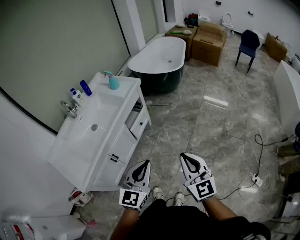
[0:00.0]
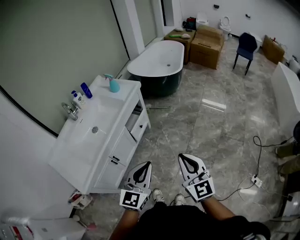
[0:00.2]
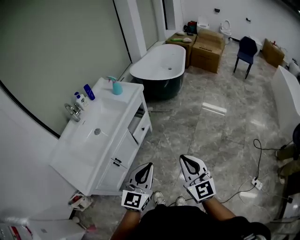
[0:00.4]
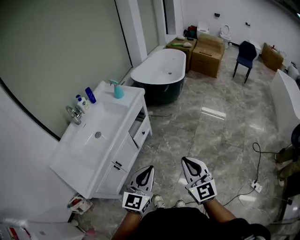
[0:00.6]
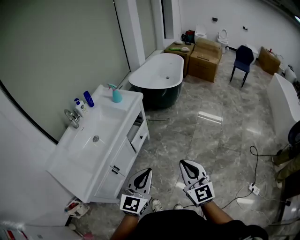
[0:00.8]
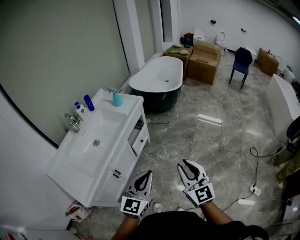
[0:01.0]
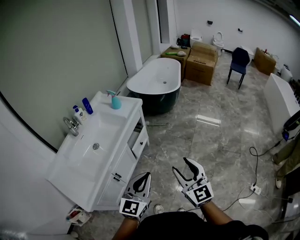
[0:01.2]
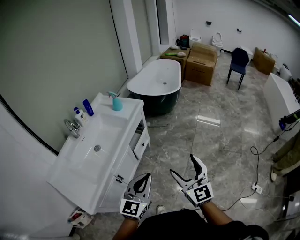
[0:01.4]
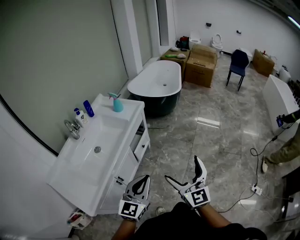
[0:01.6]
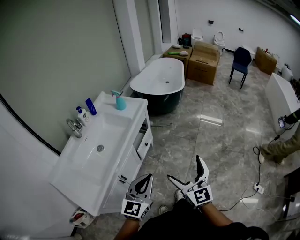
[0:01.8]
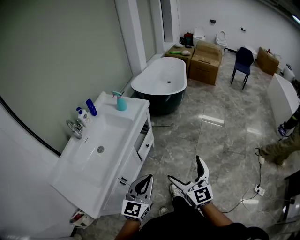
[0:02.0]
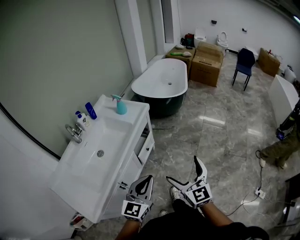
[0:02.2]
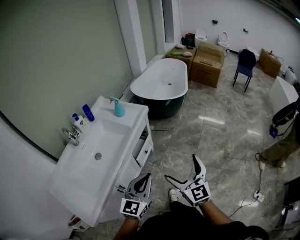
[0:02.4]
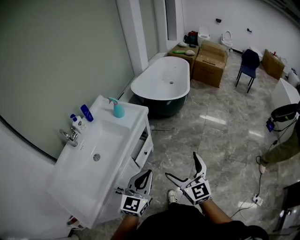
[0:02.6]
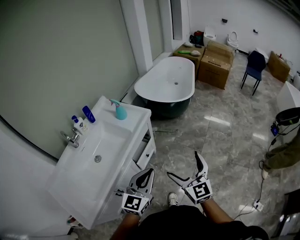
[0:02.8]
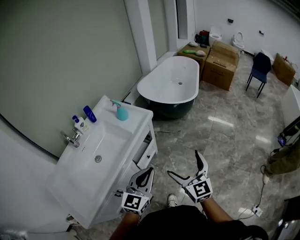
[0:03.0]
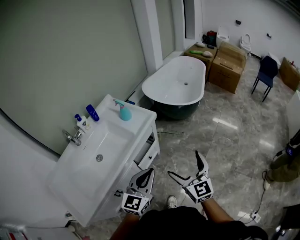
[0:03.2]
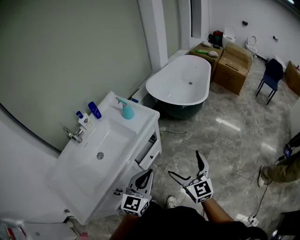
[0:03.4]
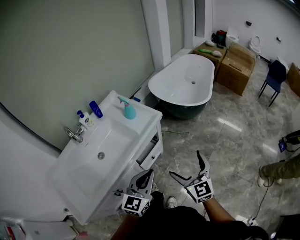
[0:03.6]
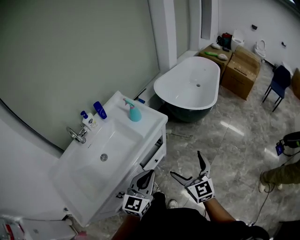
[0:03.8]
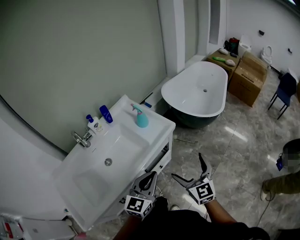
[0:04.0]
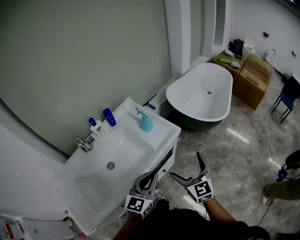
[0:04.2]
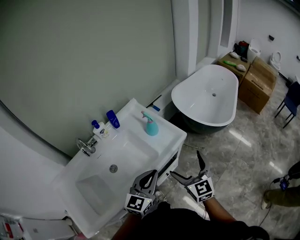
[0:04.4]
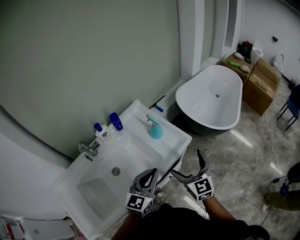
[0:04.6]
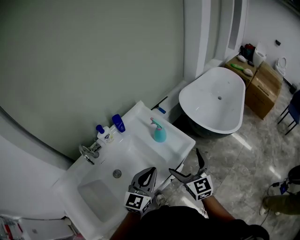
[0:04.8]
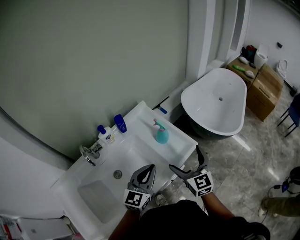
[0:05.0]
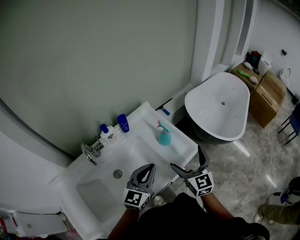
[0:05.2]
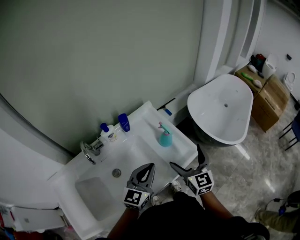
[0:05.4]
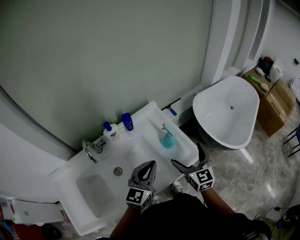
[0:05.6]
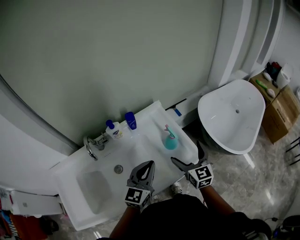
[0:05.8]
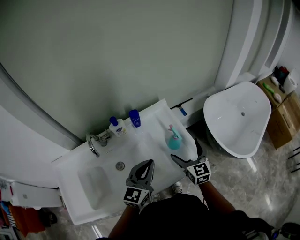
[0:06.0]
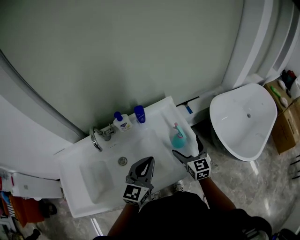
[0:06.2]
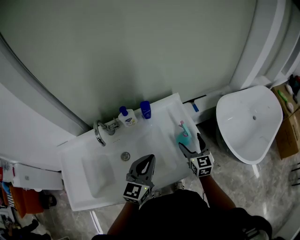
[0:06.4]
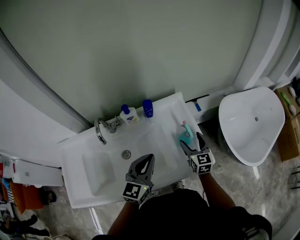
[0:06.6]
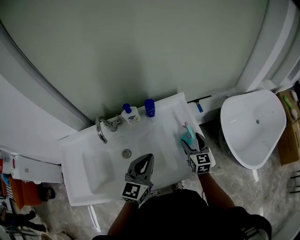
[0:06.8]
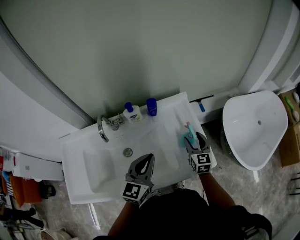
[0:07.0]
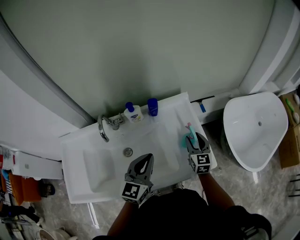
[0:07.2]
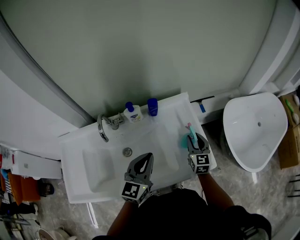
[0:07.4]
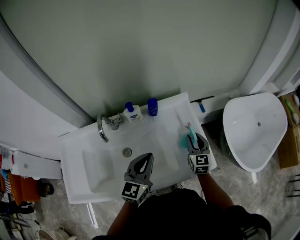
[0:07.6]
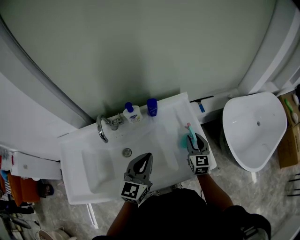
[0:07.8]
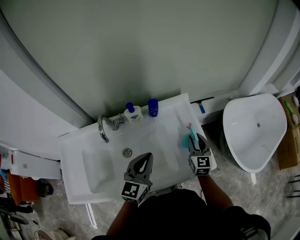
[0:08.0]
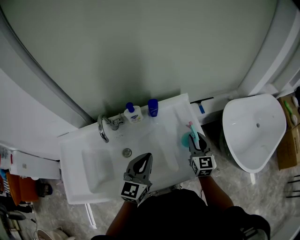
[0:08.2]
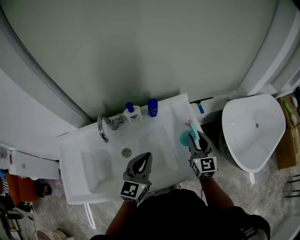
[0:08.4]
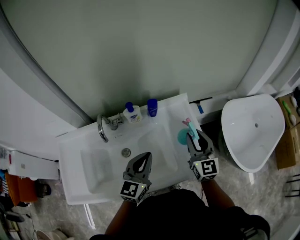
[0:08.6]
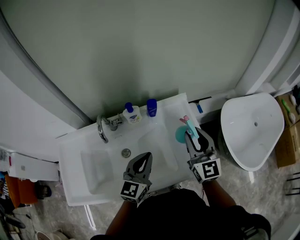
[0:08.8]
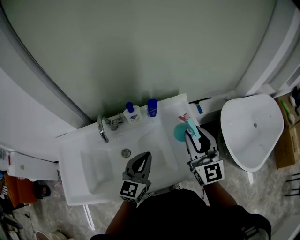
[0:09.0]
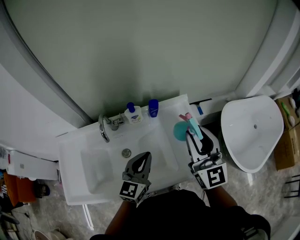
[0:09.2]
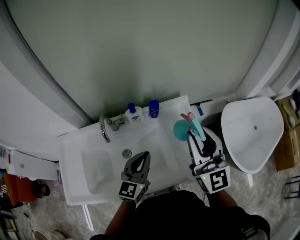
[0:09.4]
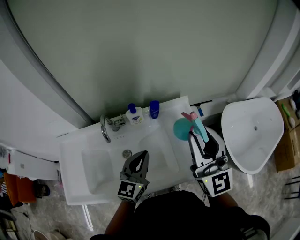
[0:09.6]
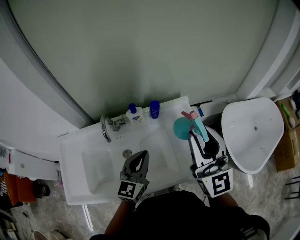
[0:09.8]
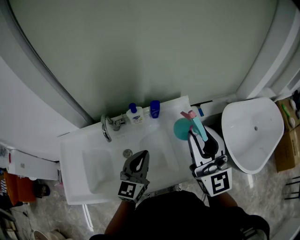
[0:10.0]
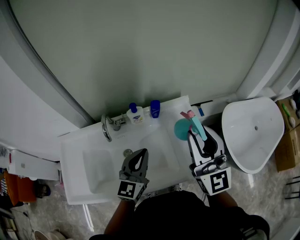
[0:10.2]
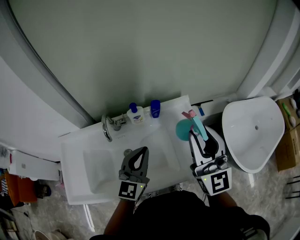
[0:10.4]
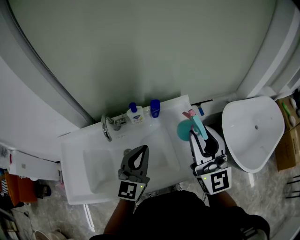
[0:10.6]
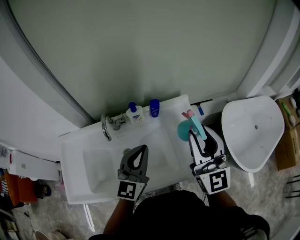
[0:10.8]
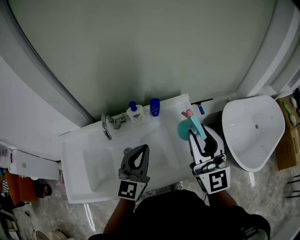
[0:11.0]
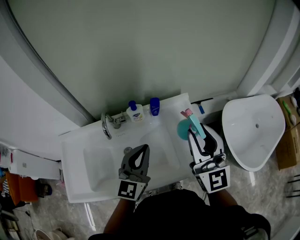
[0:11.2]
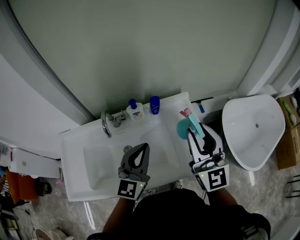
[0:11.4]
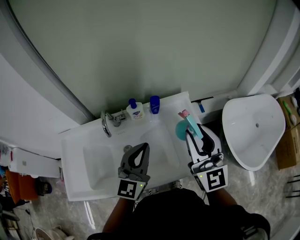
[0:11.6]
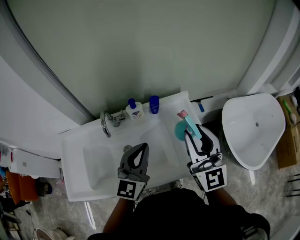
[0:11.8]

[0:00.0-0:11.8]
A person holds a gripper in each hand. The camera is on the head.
0:00.0 to 0:01.4: The grippers both shift to the left by some 10 cm. The right gripper opens up.
0:01.4 to 0:03.0: The two grippers go approximately 25 cm forward. The right gripper opens its fingers.
0:03.0 to 0:04.4: The two grippers go some 25 cm forward and to the left.
0:04.4 to 0:06.0: The left gripper travels forward and to the left by approximately 20 cm, and changes its angle by some 20 degrees; the right gripper heads forward, covering some 25 cm.
0:06.0 to 0:07.4: The right gripper is displaced forward and downward by roughly 10 cm, and closes up.
0:07.4 to 0:08.8: The right gripper shifts about 15 cm upward, and rotates approximately 20 degrees.
0:08.8 to 0:10.4: The left gripper heads upward, covering roughly 5 cm. The right gripper goes roughly 15 cm upward.
0:10.4 to 0:11.8: There are only small adjustments of the grippers.

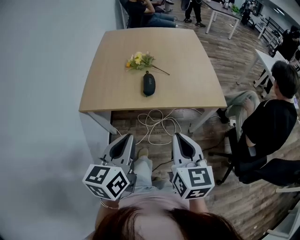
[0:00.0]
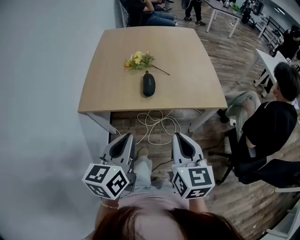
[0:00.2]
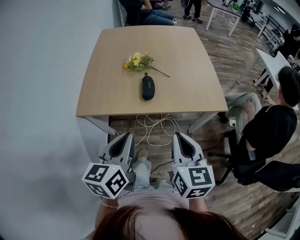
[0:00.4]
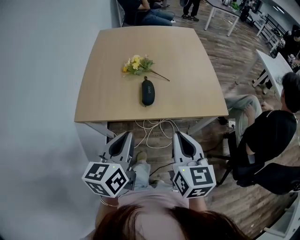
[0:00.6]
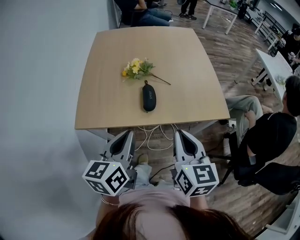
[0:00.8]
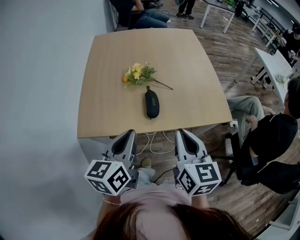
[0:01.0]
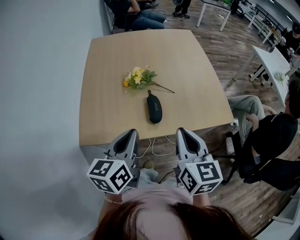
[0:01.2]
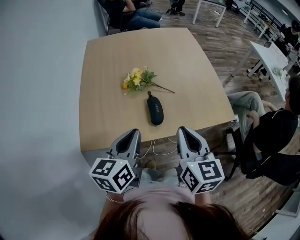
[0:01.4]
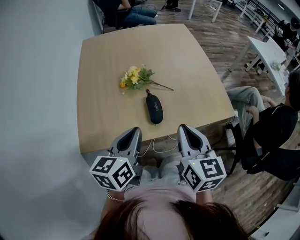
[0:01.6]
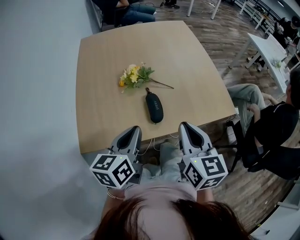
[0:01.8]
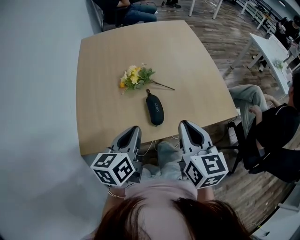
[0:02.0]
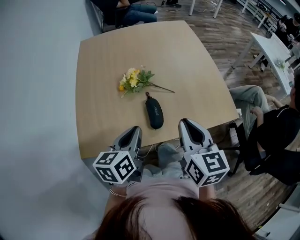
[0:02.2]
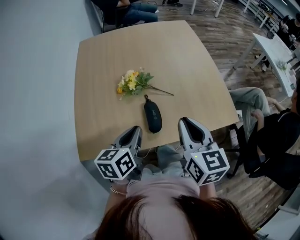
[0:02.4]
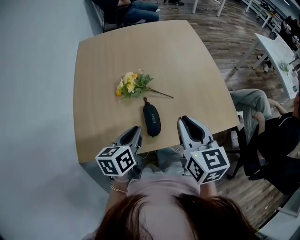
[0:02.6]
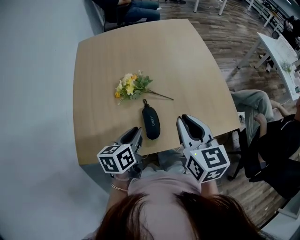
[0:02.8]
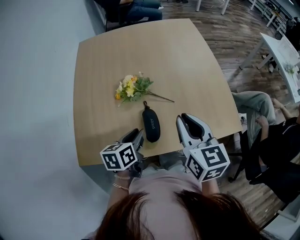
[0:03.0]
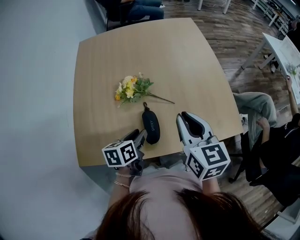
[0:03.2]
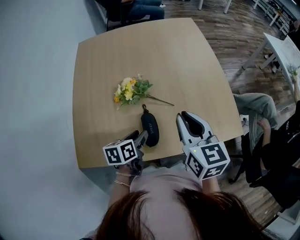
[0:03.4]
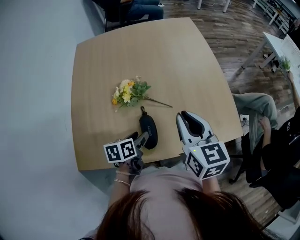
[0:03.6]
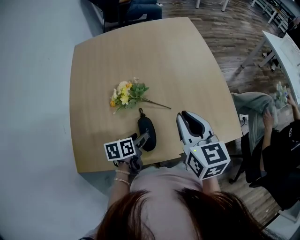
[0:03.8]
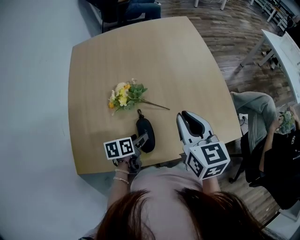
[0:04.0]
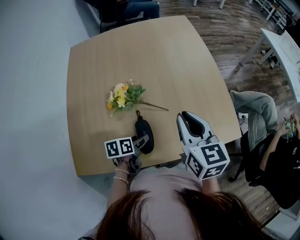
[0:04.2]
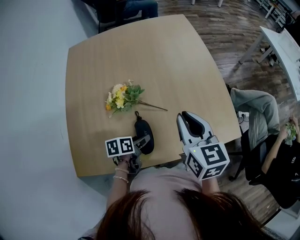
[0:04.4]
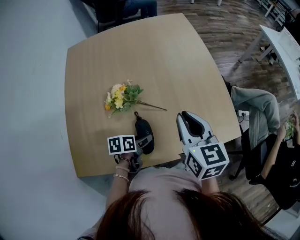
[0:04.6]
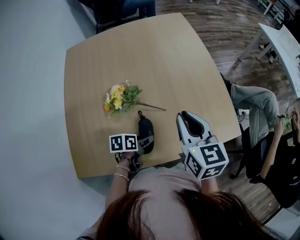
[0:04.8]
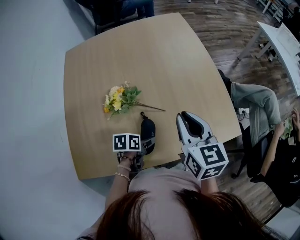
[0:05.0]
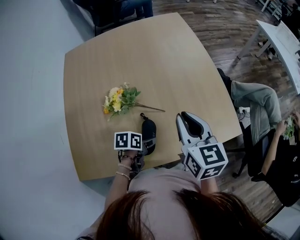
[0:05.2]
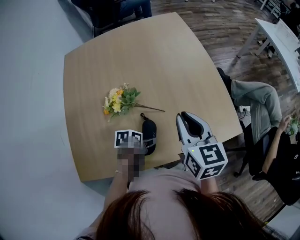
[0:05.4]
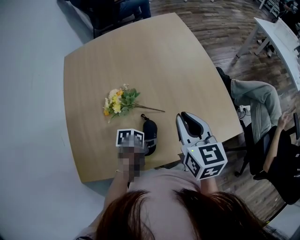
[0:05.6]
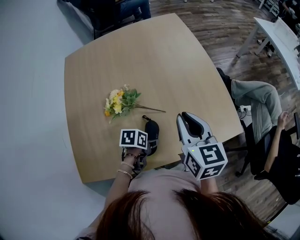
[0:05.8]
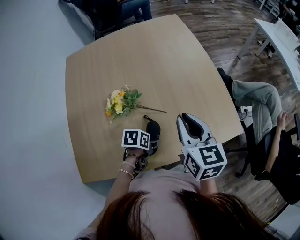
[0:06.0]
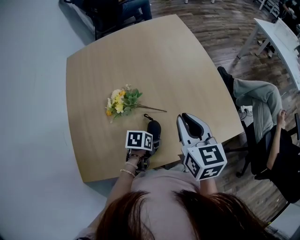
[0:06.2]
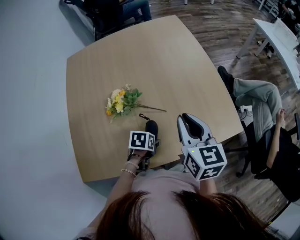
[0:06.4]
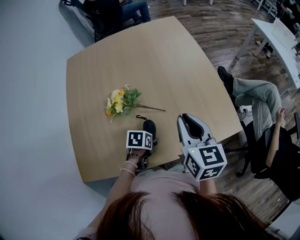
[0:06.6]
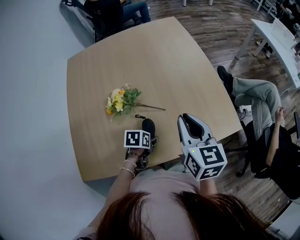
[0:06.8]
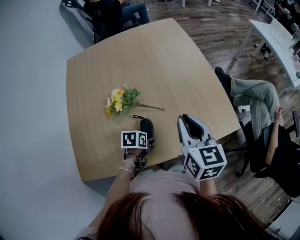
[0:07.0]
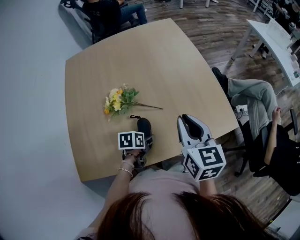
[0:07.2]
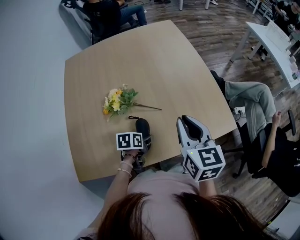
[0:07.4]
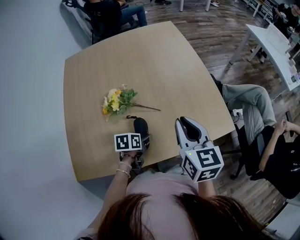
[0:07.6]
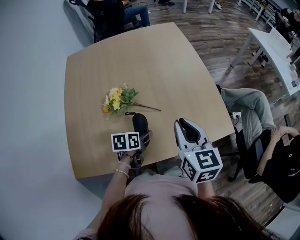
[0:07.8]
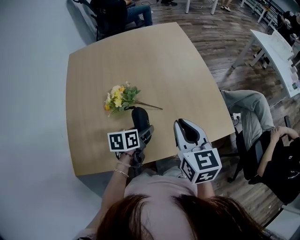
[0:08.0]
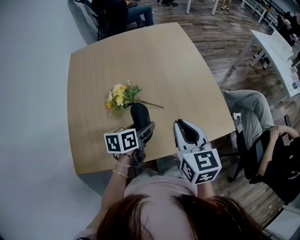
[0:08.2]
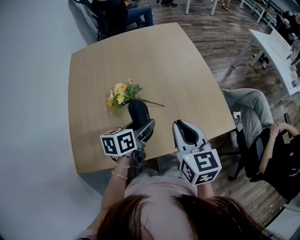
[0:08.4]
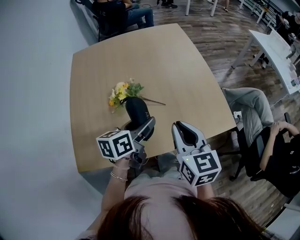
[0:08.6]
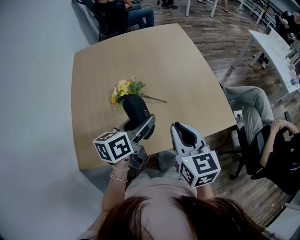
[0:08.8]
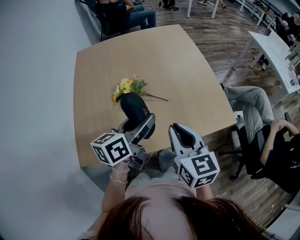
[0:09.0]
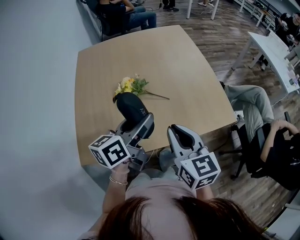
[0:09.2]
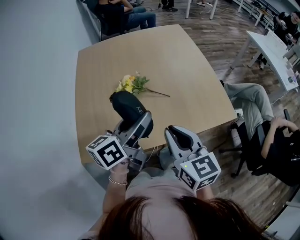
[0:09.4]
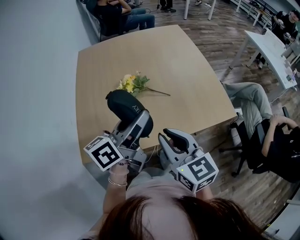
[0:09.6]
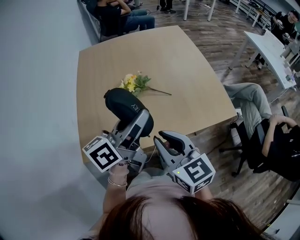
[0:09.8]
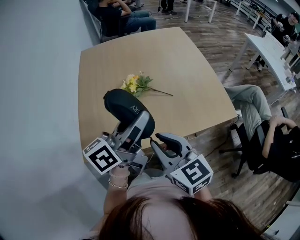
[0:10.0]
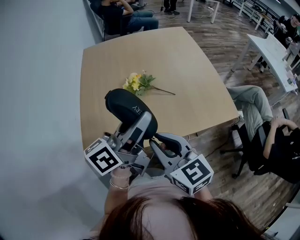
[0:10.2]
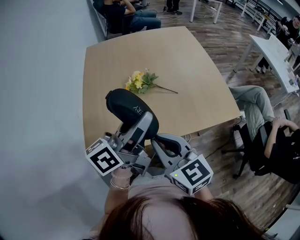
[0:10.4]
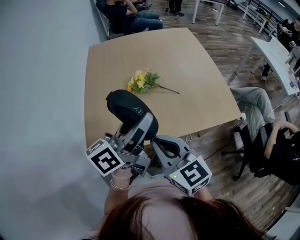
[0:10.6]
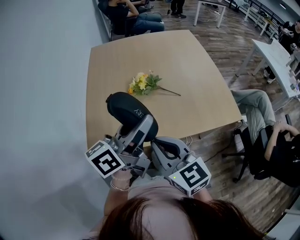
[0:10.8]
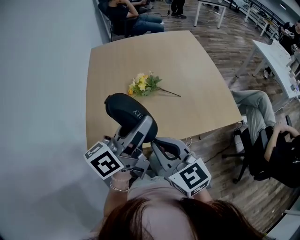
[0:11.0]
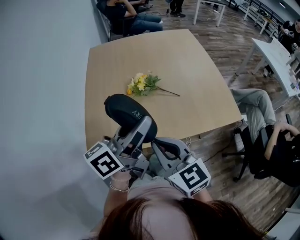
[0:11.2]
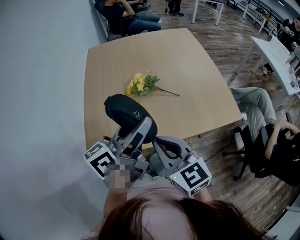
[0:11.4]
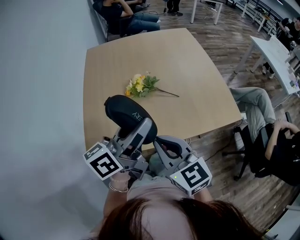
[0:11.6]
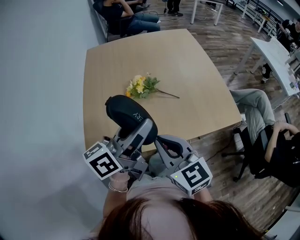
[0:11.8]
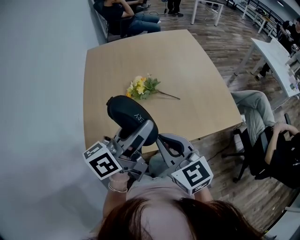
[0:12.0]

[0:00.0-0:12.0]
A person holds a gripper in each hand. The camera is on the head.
0:00.0 to 0:01.6: Both grippers travel together forward, some 25 cm.
0:01.6 to 0:03.0: The left gripper travels downward and forward by approximately 20 cm, and turns by roughly 20 degrees. The right gripper goes some 15 cm forward.
0:03.0 to 0:04.4: The right gripper shifts about 5 cm forward; the left gripper goes roughly 10 cm downward, rotates roughly 20 degrees, and opens its fingers.
0:04.4 to 0:06.0: The left gripper ends up roughly 5 cm from where it was, and turns by some 30 degrees.
0:06.0 to 0:07.6: There are only small adjustments of the grippers.
0:07.6 to 0:09.0: The left gripper is displaced upward by approximately 25 cm, and angles its fingers upward, by some 40 degrees, while the right gripper travels backward and to the left by approximately 10 cm.
0:09.0 to 0:10.4: The right gripper is displaced to the left and backward by some 15 cm, and changes its angle by some 20 degrees, while the left gripper is displaced upward, backward and to the left by roughly 15 cm, and changes its angle by about 20 degrees.
0:10.4 to 0:12.0: The grippers move only a little.
